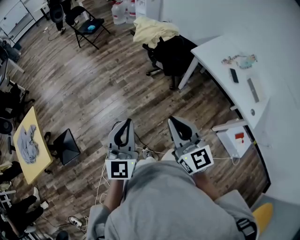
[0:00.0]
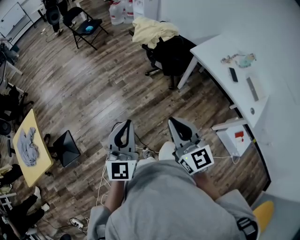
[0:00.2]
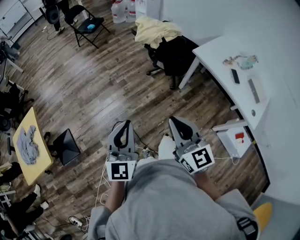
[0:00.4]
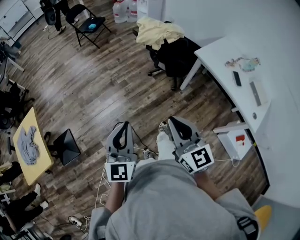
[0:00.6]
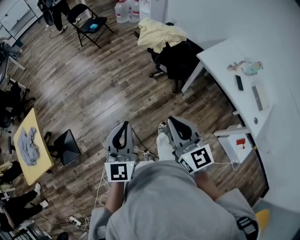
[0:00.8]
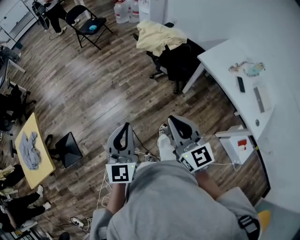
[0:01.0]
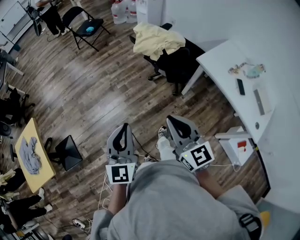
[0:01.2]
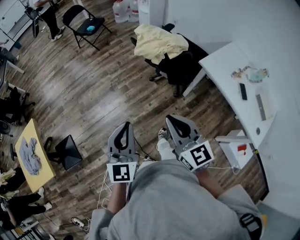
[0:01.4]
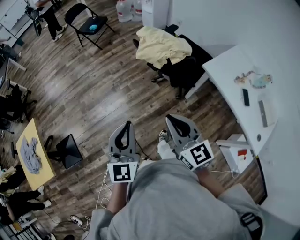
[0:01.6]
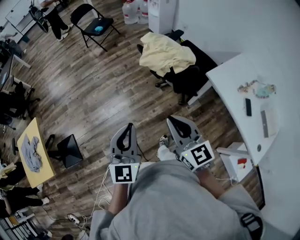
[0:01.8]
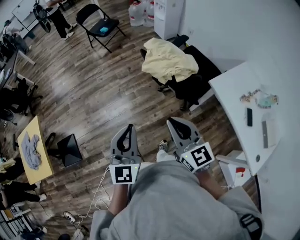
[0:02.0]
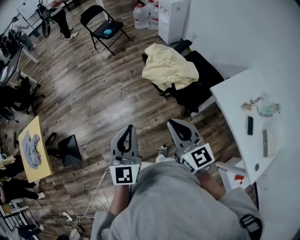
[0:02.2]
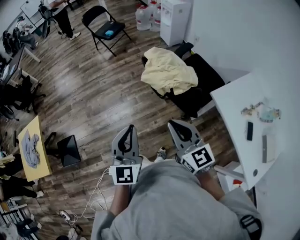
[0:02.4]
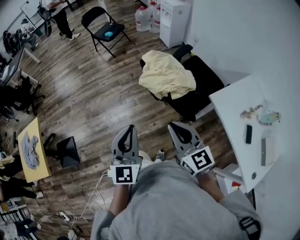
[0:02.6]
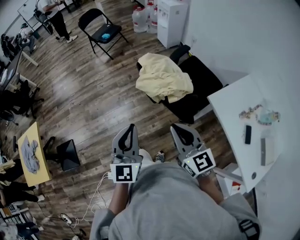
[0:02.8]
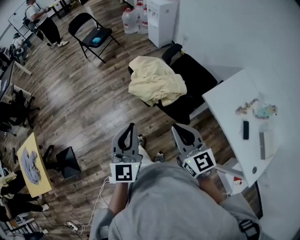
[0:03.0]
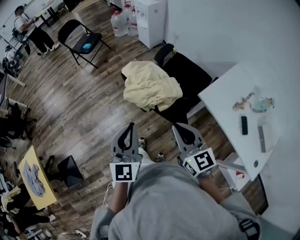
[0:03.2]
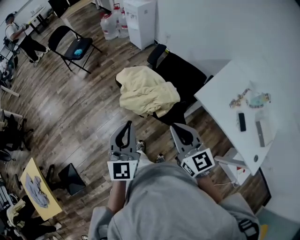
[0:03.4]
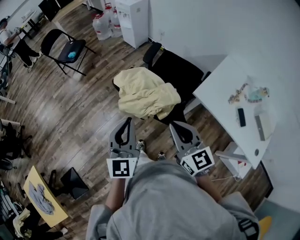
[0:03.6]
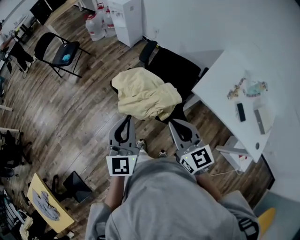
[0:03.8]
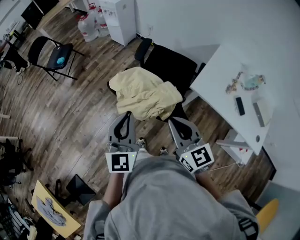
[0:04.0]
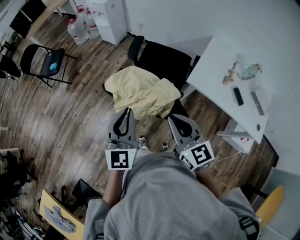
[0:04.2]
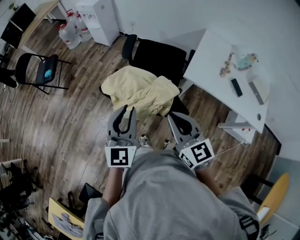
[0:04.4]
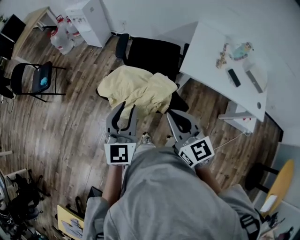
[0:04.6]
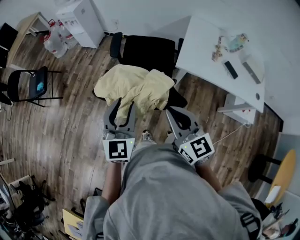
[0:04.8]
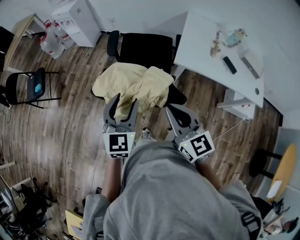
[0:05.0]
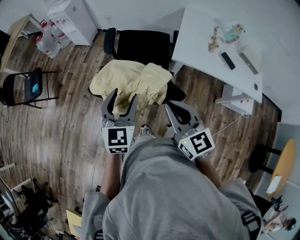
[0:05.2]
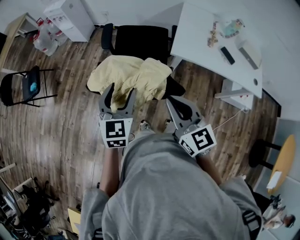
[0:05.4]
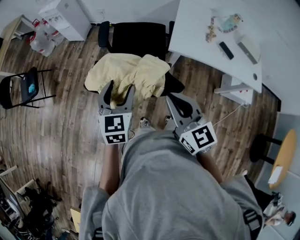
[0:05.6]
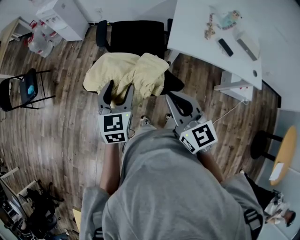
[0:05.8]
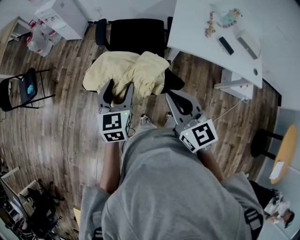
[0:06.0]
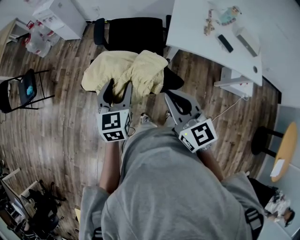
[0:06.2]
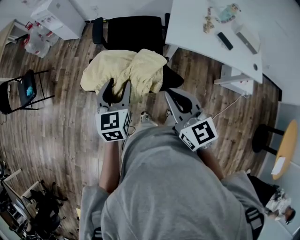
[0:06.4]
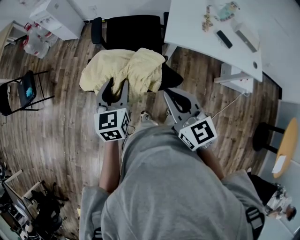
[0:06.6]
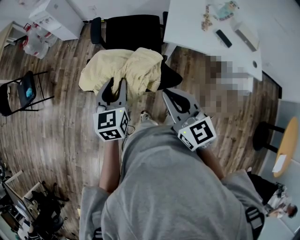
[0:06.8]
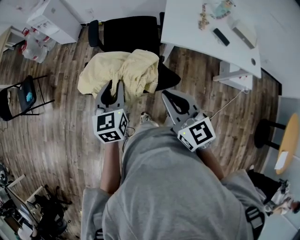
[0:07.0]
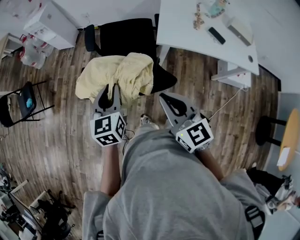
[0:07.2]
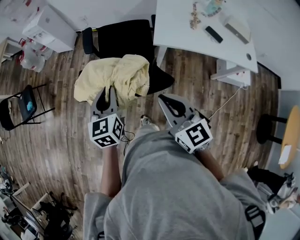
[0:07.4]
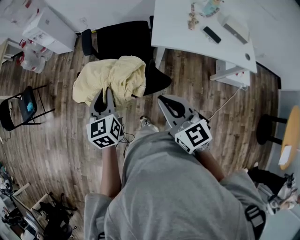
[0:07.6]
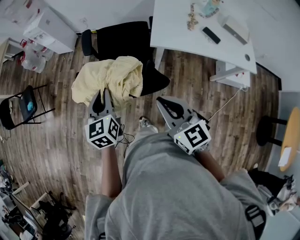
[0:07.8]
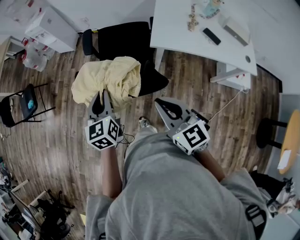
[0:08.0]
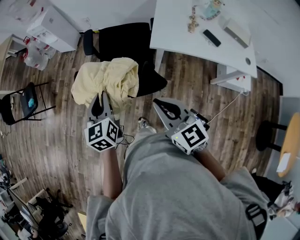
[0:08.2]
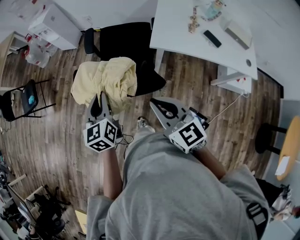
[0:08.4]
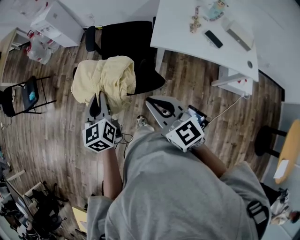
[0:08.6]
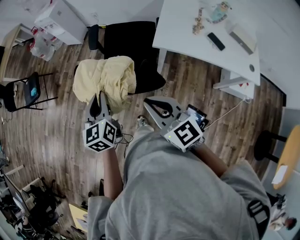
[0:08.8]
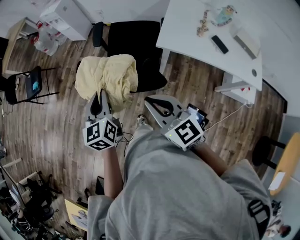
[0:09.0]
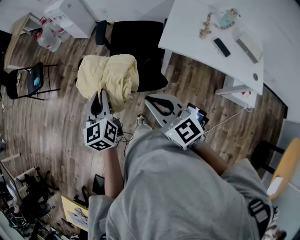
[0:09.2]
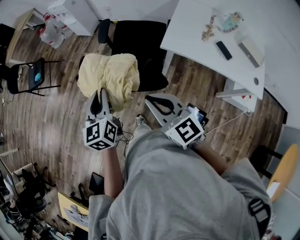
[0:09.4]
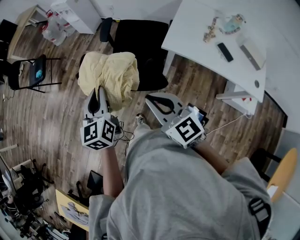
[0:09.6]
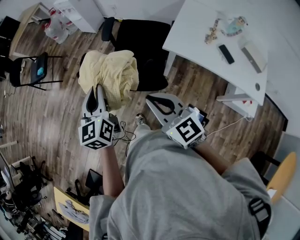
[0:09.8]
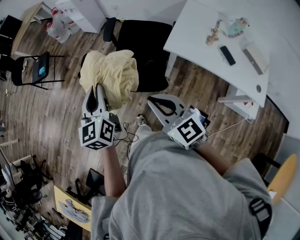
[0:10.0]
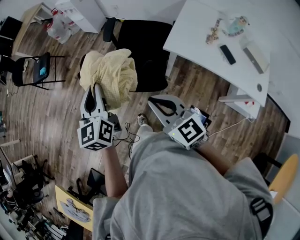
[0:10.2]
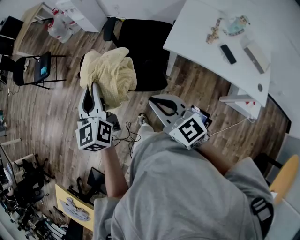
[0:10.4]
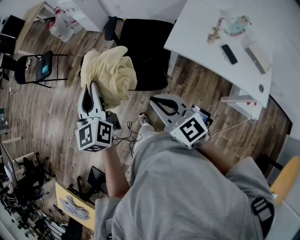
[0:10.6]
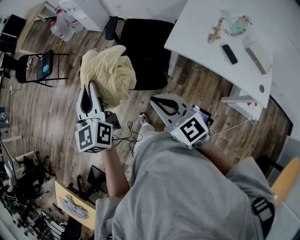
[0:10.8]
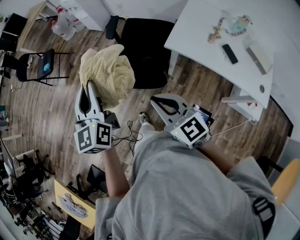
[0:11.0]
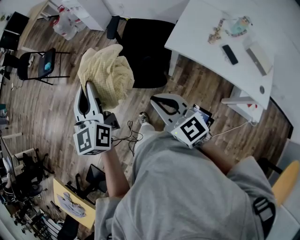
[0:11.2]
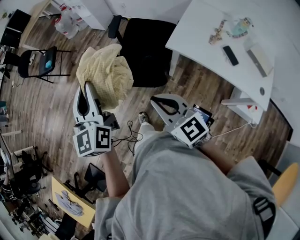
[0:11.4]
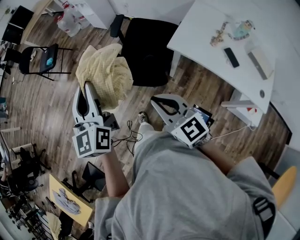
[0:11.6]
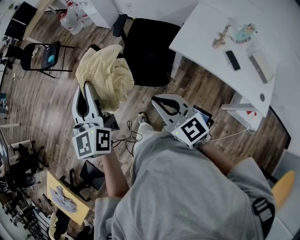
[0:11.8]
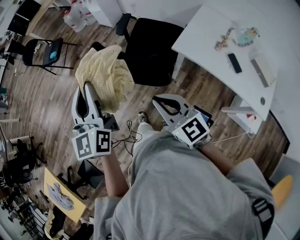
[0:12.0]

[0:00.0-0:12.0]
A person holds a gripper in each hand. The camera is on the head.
0:00.0 to 0:01.6: Both grippers travel together forward, some 20 cm.
0:01.6 to 0:03.0: Both grippers move forward and to the right, roughly 20 cm.
0:03.0 to 0:04.4: The right gripper moves approximately 10 cm, and turns by approximately 30 degrees; the left gripper shifts by about 20 cm, and turns by about 30 degrees.
0:04.4 to 0:06.0: The left gripper moves downward and forward, some 10 cm, rotates roughly 20 degrees, and opens up.
0:06.0 to 0:07.6: The left gripper closes its fingers.
0:07.6 to 0:09.0: The left gripper travels backward by some 5 cm.
0:09.0 to 0:10.4: The left gripper goes roughly 10 cm upward.
0:10.4 to 0:12.0: The left gripper heads backward and upward, covering roughly 10 cm.

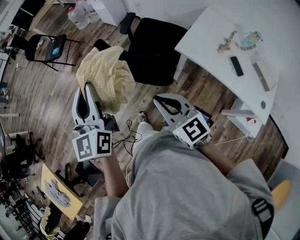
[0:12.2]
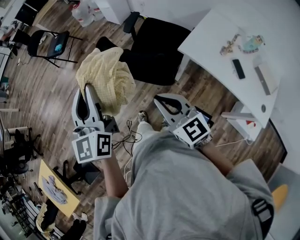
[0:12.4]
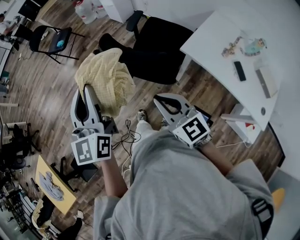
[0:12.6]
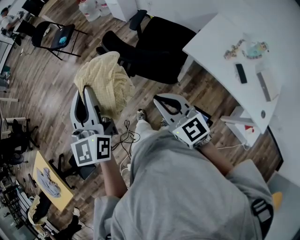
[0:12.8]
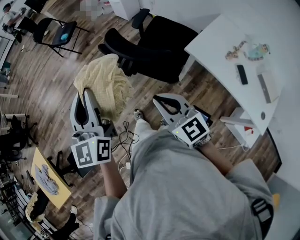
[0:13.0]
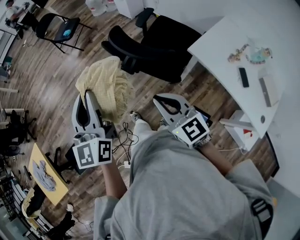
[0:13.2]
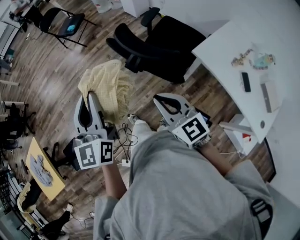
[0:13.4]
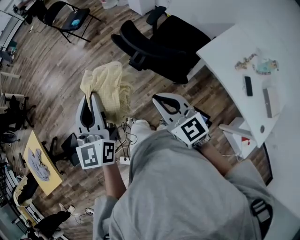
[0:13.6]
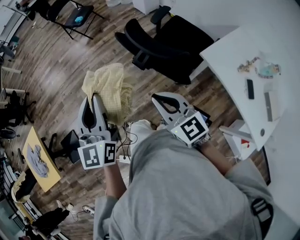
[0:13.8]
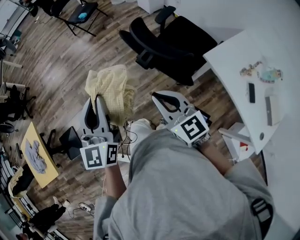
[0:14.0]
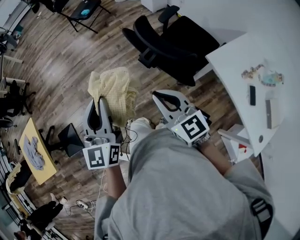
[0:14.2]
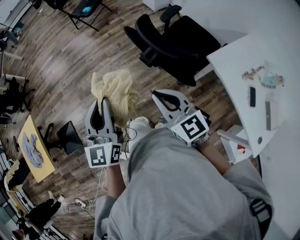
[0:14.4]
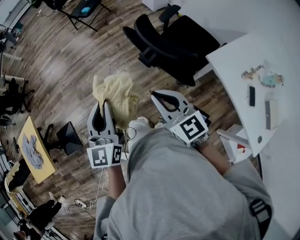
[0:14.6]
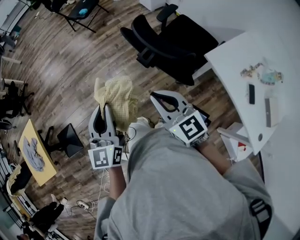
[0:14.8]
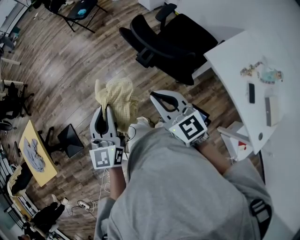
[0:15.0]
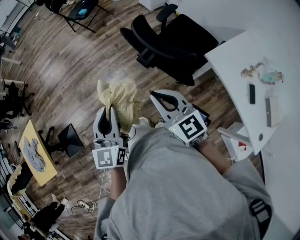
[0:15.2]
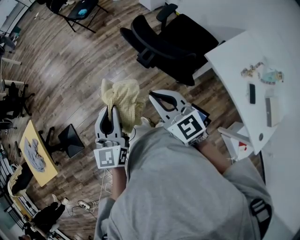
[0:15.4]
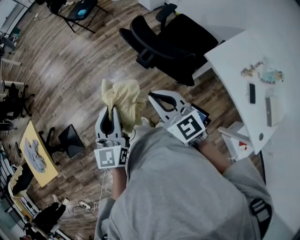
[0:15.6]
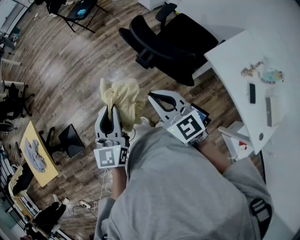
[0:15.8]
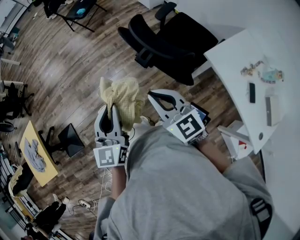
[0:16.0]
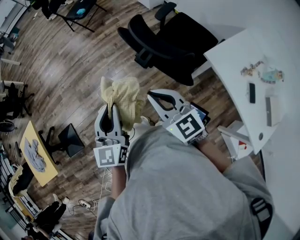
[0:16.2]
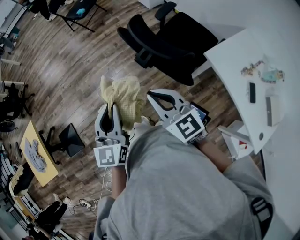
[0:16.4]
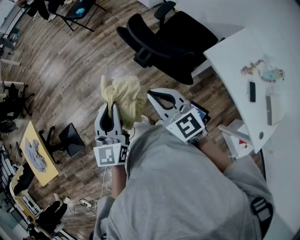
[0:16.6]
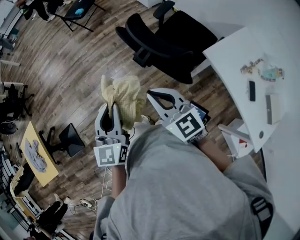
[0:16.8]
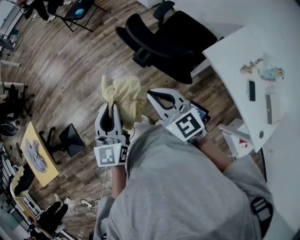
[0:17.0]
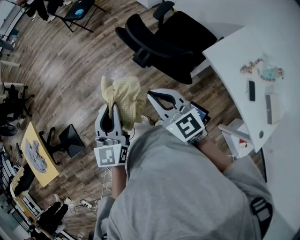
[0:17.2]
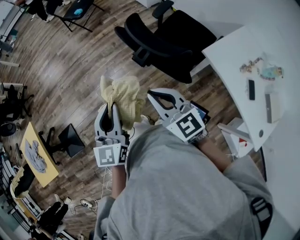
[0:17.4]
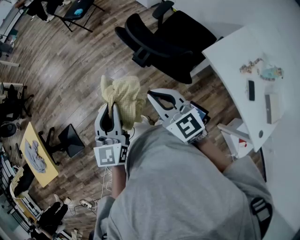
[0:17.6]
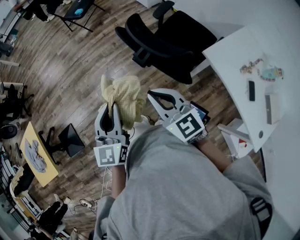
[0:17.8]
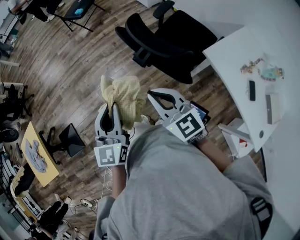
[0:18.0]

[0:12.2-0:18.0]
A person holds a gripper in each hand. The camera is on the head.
0:12.2 to 0:13.6: The right gripper heads to the left, covering some 10 cm, while the left gripper shifts approximately 10 cm to the left and backward.
0:13.6 to 0:15.0: The left gripper travels downward by some 10 cm.
0:15.0 to 0:16.6: The grippers move only a little.
0:16.6 to 0:18.0: The two grippers keep their place.

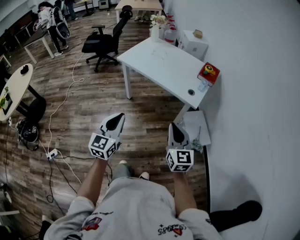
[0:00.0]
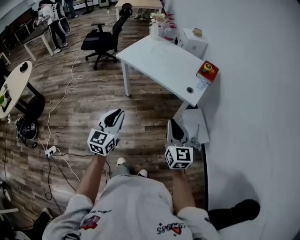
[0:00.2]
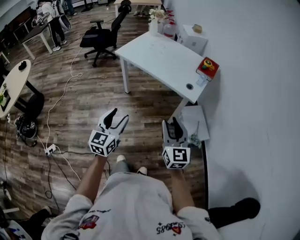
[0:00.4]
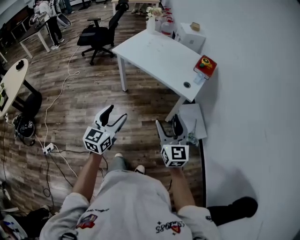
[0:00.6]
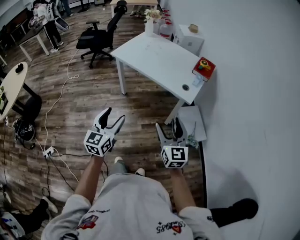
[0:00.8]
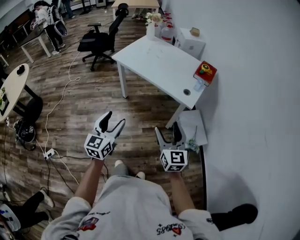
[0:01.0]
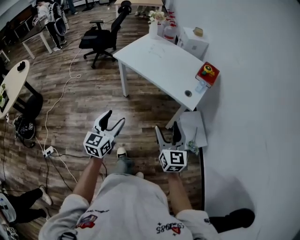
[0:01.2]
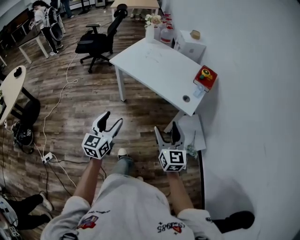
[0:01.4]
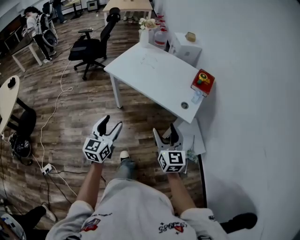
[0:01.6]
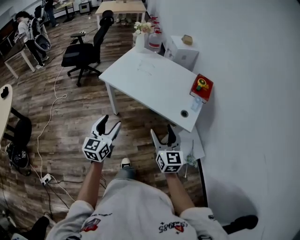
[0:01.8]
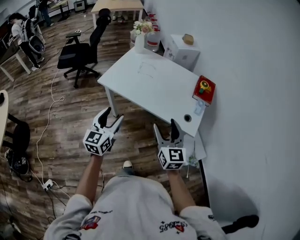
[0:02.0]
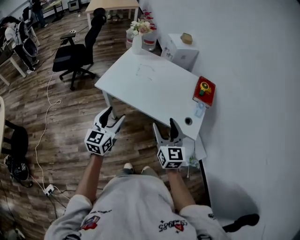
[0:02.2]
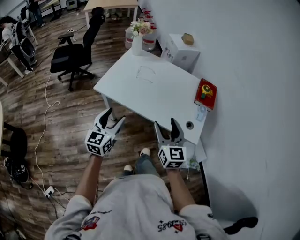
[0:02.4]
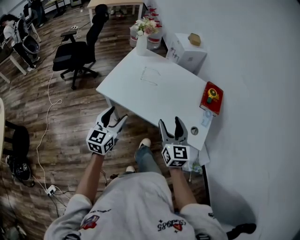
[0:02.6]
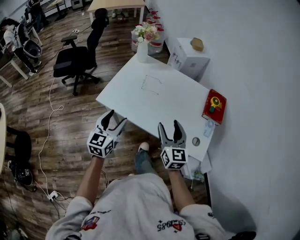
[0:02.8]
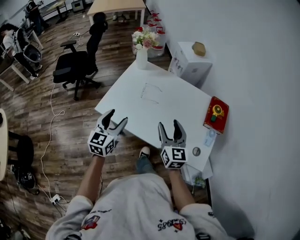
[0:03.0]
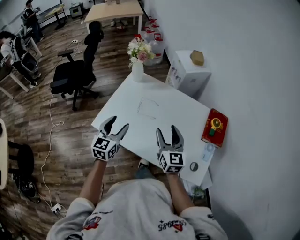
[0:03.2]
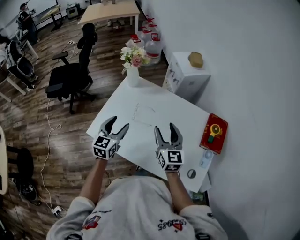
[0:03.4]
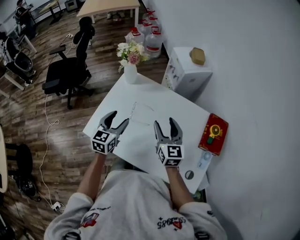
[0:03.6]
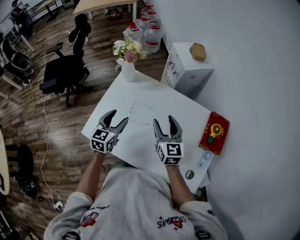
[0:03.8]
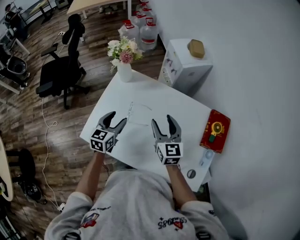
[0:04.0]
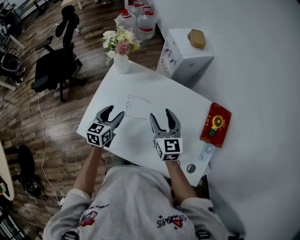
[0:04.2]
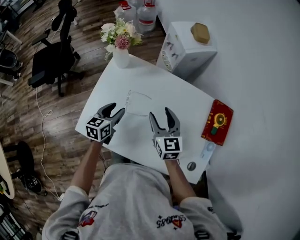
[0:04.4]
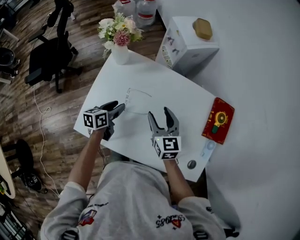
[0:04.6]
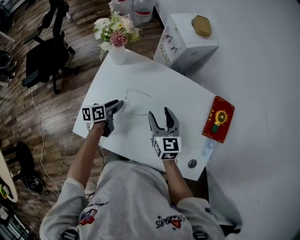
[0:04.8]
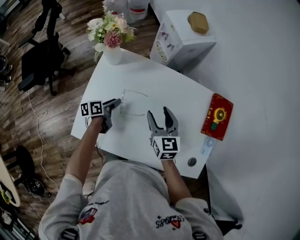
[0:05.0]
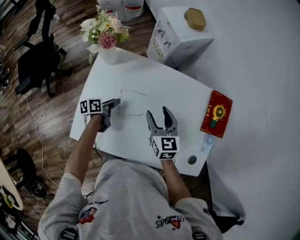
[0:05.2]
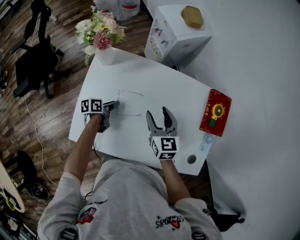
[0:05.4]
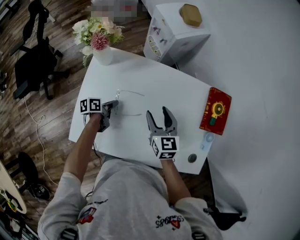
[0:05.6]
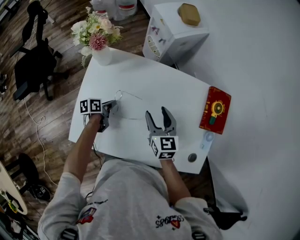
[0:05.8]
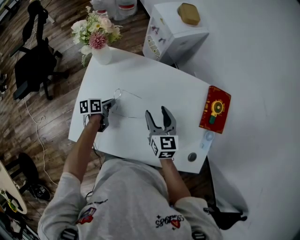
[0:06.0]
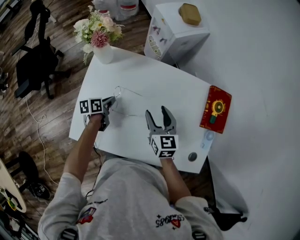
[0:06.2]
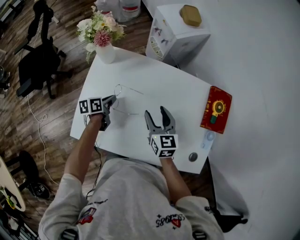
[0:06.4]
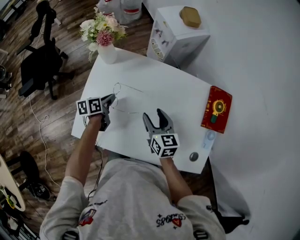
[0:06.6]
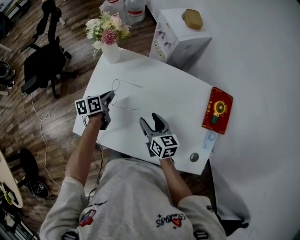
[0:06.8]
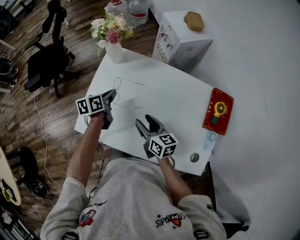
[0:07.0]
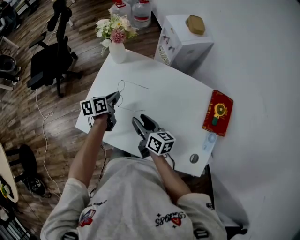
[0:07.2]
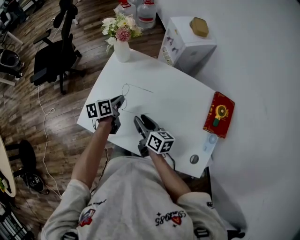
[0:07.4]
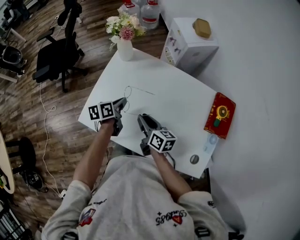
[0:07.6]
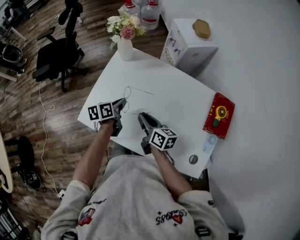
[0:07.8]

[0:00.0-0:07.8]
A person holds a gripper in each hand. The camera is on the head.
0:00.0 to 0:01.6: The grippers both shift forward by roughly 15 cm. The left gripper opens; the right gripper opens up.
0:01.6 to 0:03.2: The two grippers travel together, forward, roughly 60 cm.
0:03.2 to 0:04.6: The two grippers go some 25 cm forward and downward. The left gripper changes its angle by roughly 40 degrees.
0:04.6 to 0:06.2: The right gripper shifts by approximately 5 cm, while the left gripper goes roughly 10 cm downward and forward, and closes up.
0:06.2 to 0:07.8: The right gripper moves backward and to the left, approximately 15 cm, changes its angle by about 40 degrees, and closes up; the left gripper is displaced upward and backward by some 15 cm.
